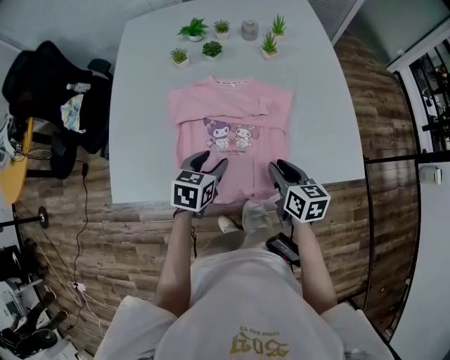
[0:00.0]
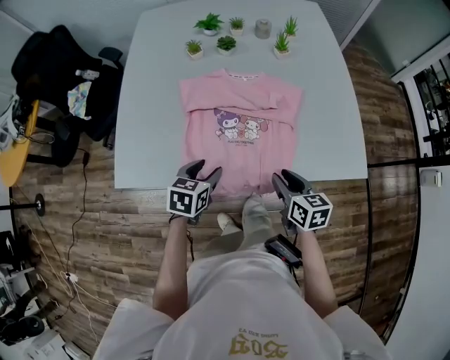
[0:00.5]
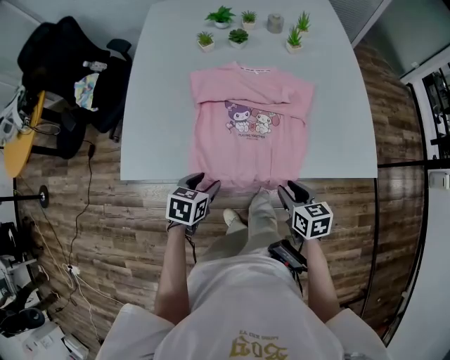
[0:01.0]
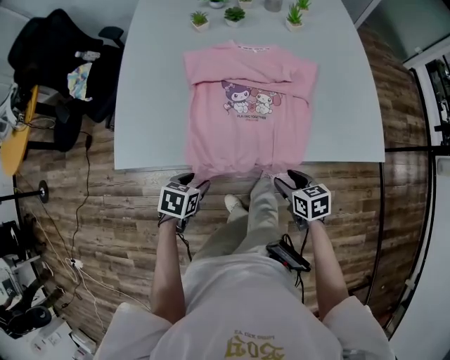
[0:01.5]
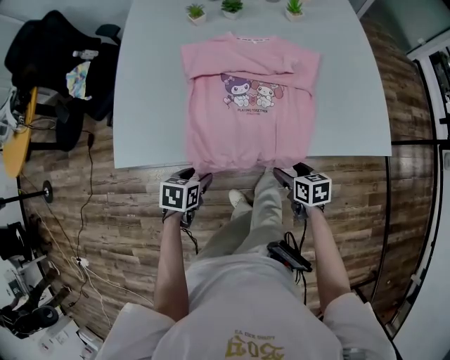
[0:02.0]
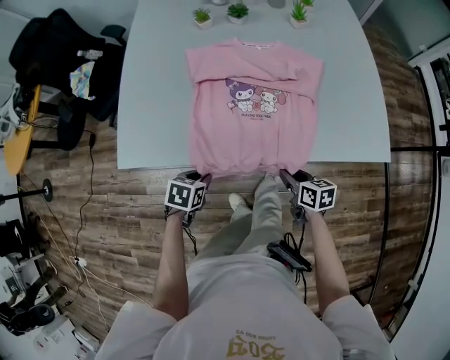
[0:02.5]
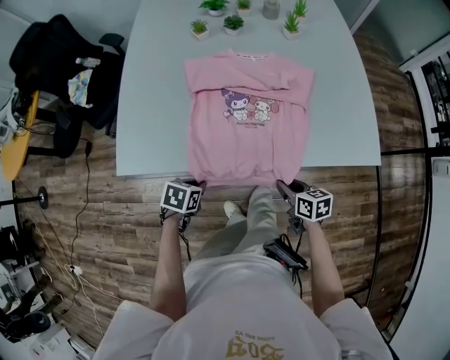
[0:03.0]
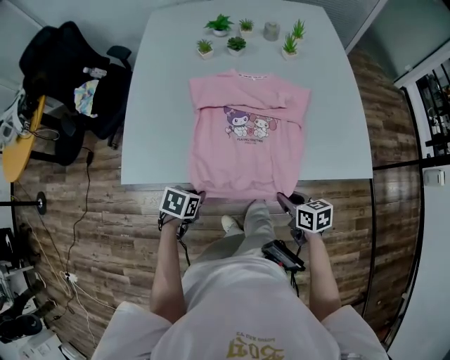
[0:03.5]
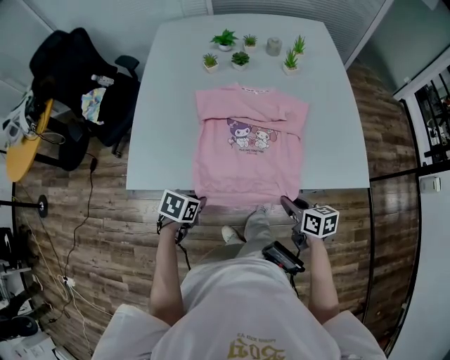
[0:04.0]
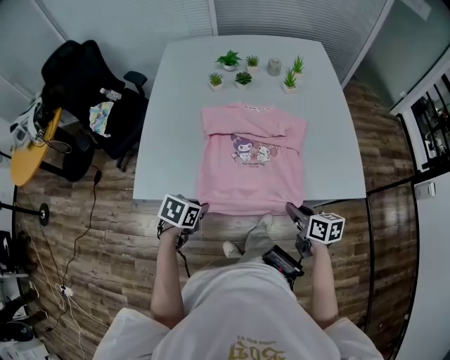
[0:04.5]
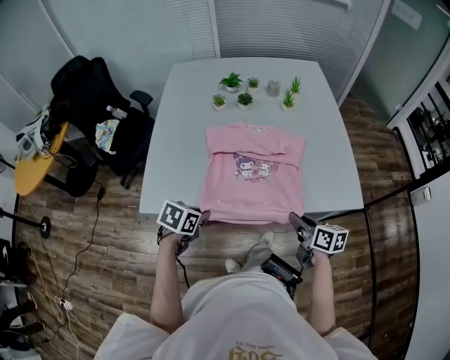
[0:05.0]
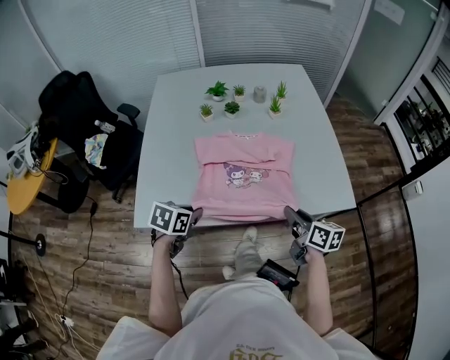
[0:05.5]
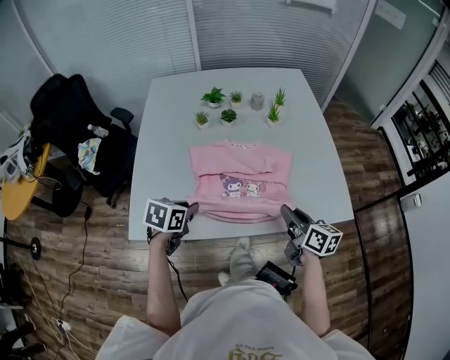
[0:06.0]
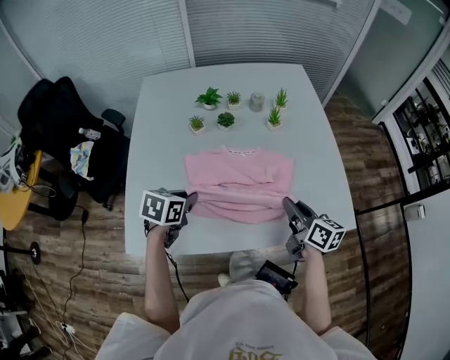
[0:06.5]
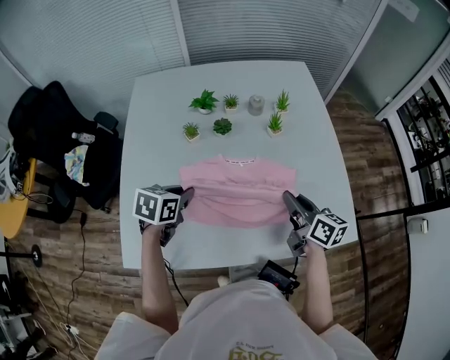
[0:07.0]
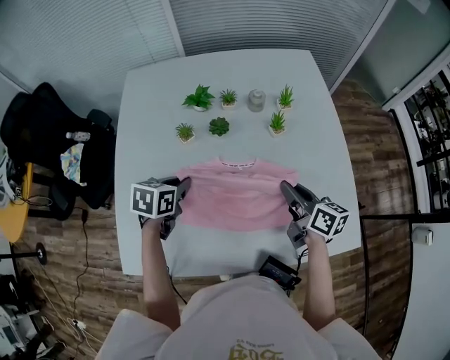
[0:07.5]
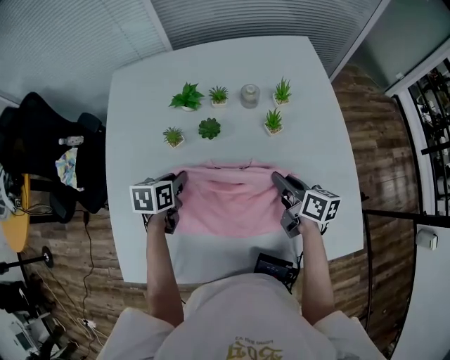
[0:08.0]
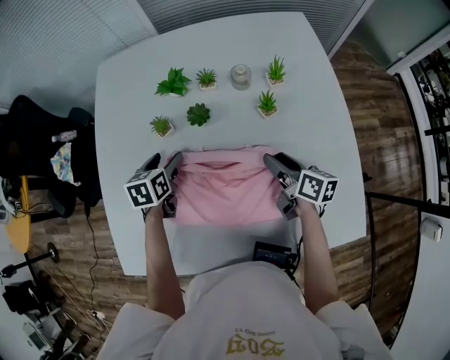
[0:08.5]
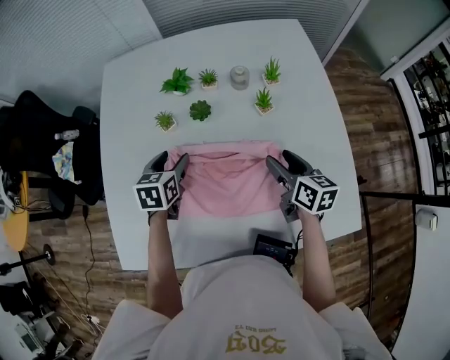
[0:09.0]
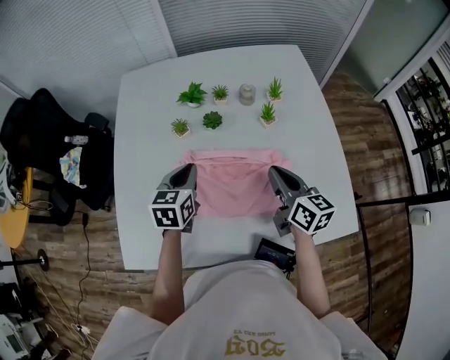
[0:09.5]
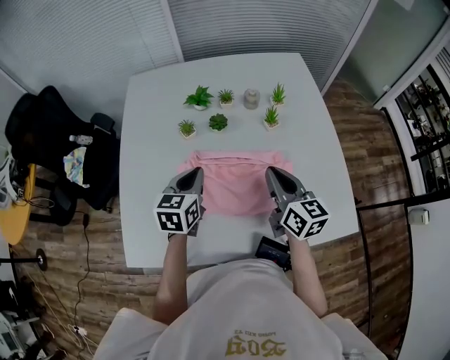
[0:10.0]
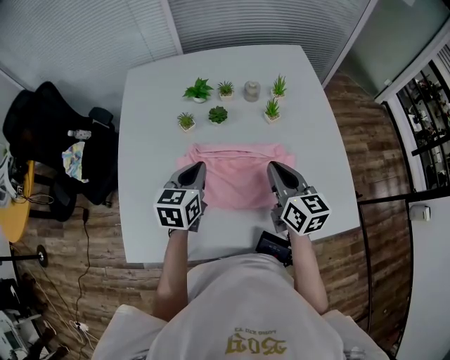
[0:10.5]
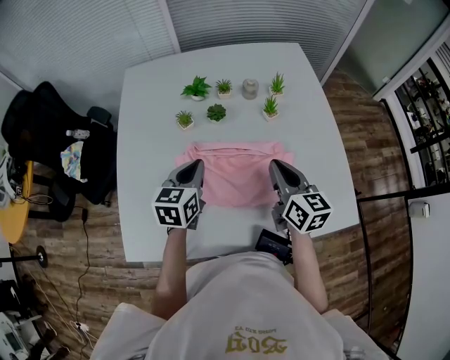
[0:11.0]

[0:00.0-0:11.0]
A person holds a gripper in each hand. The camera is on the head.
0:00.0 to 0:02.0: The left gripper shifts roughly 25 cm backward, downward and to the left, and rotates about 20 degrees, while the right gripper shifts approximately 20 cm downward and backward, changes its angle by about 20 degrees, and opens.
0:02.0 to 0:03.5: The left gripper closes up. The right gripper shifts approximately 10 cm upward, and closes up.
0:03.5 to 0:05.5: The right gripper moves upward, some 15 cm, and rotates roughly 30 degrees, while the left gripper moves upward and forward, some 15 cm.
0:05.5 to 0:07.5: The grippers both shift forward by some 30 cm.
0:07.5 to 0:09.0: The right gripper opens its fingers. The left gripper travels forward by about 5 cm, and opens.
0:09.0 to 0:11.0: The right gripper goes about 15 cm upward, backward and to the left, and closes its fingers; the left gripper moves upward and backward, approximately 10 cm, and closes.

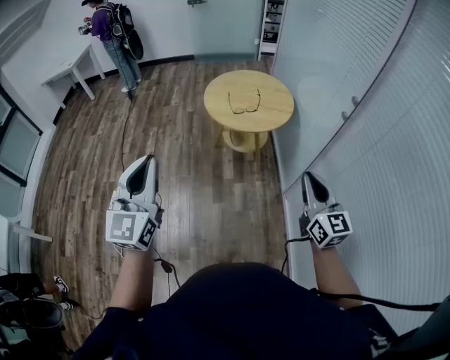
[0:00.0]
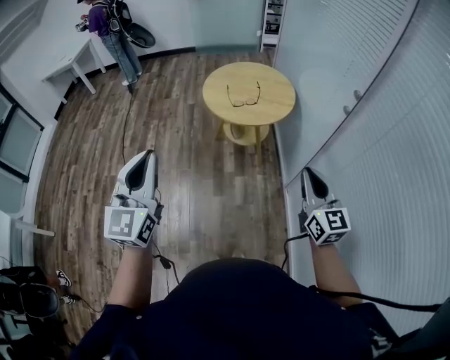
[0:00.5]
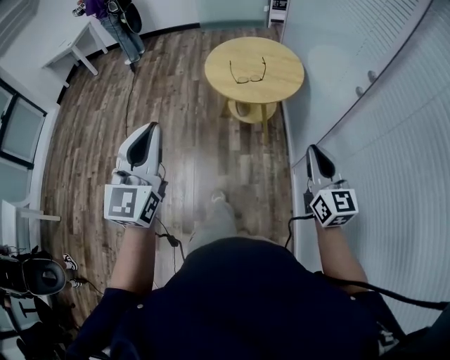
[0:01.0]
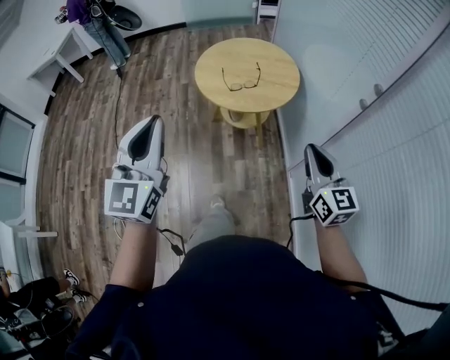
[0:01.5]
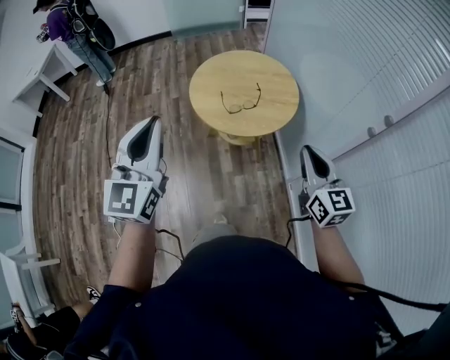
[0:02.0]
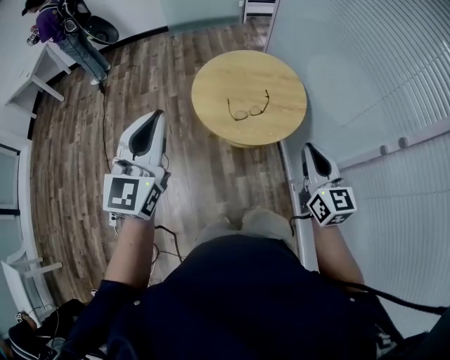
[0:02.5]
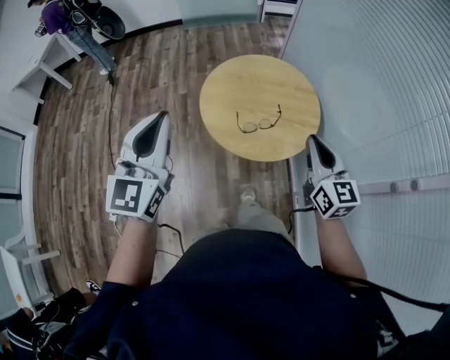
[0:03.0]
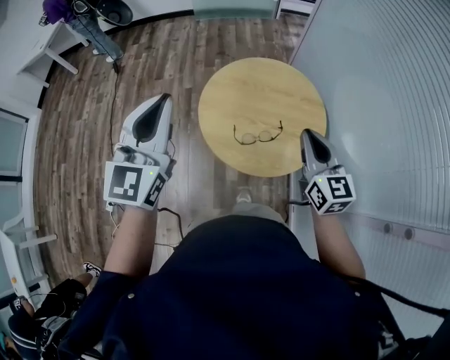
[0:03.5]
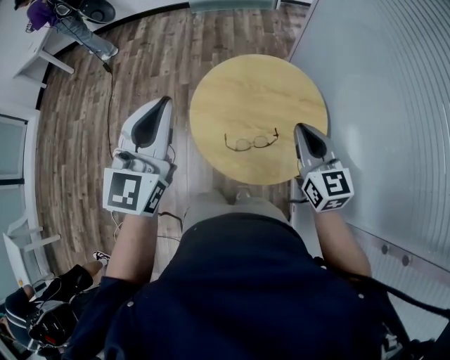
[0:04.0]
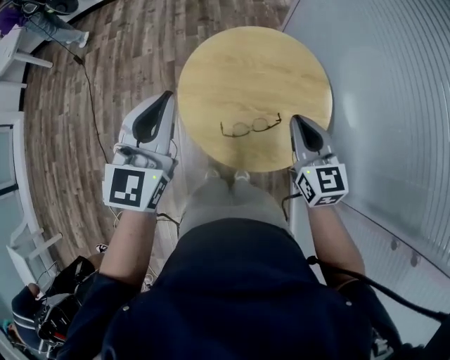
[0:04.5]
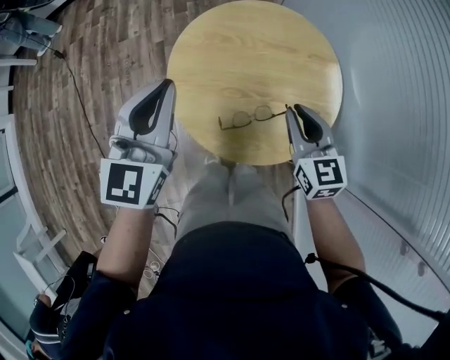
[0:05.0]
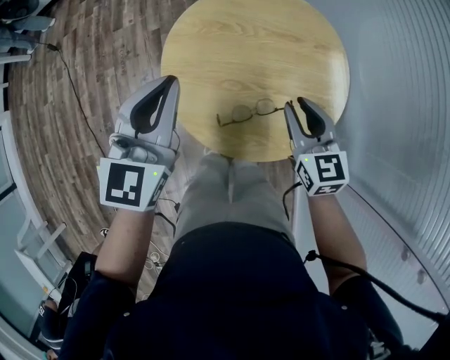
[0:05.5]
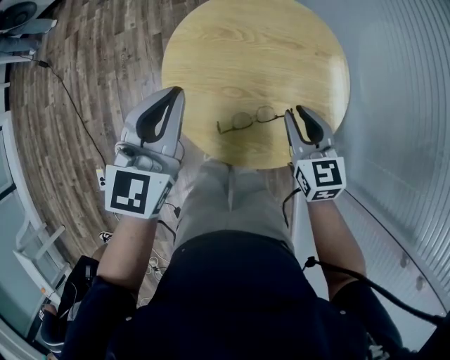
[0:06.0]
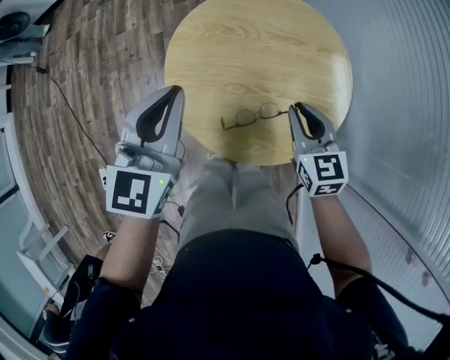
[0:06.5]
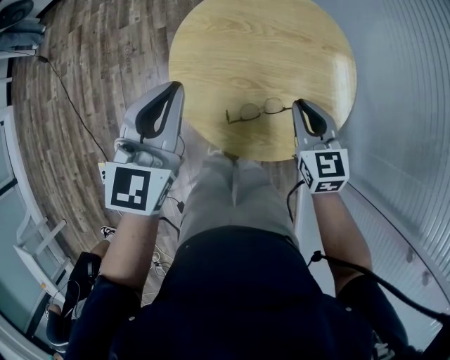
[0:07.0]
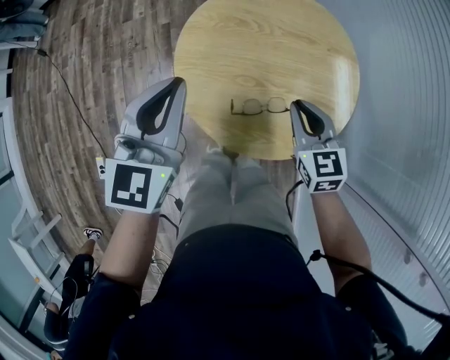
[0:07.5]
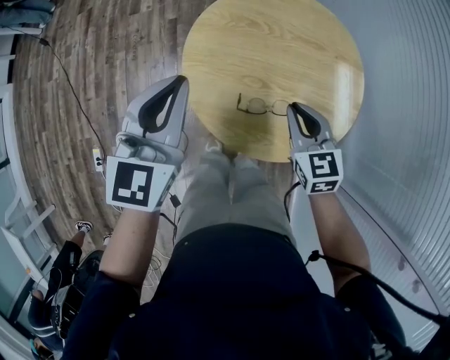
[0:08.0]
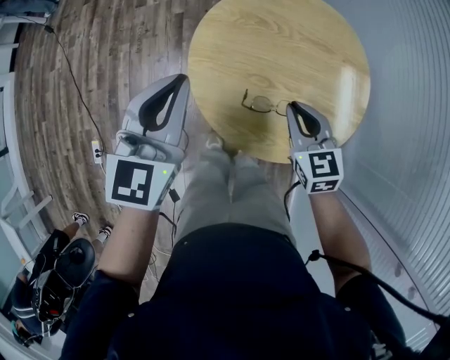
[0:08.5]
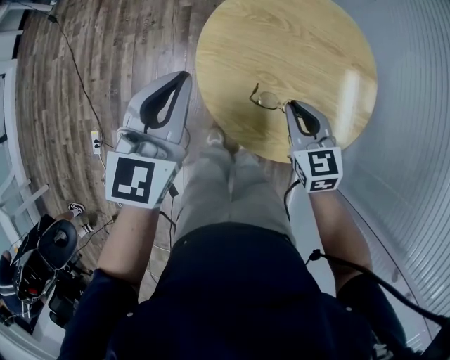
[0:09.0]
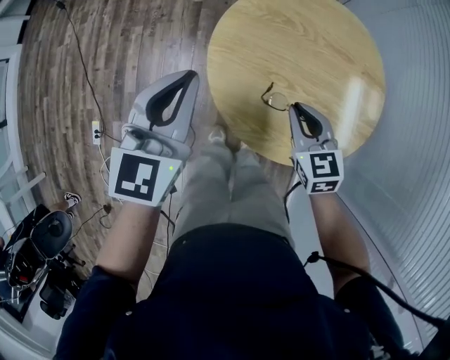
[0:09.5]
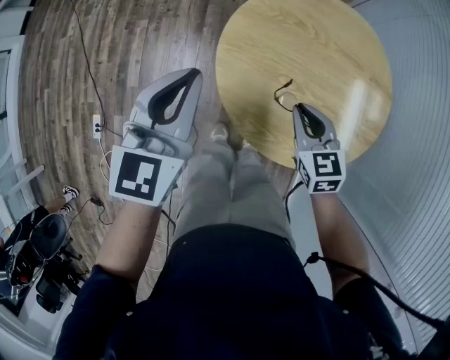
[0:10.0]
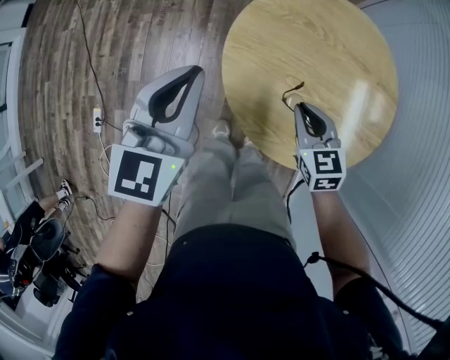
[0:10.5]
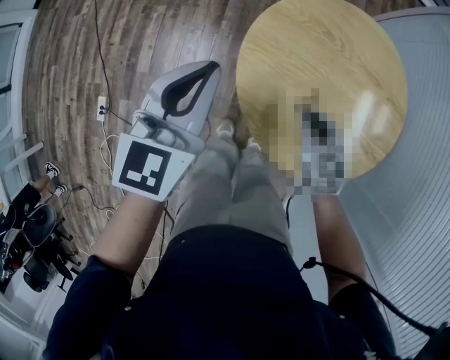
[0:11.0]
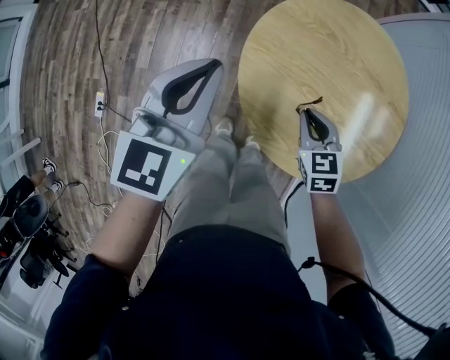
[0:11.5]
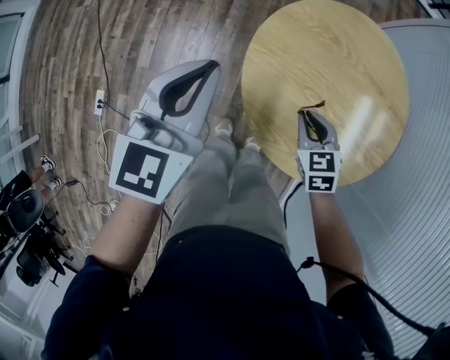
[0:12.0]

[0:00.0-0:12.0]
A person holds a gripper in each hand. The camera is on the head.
0:00.0 to 0:02.0: Both grippers move forward, some 30 cm.
0:02.0 to 0:04.0: The two grippers go approximately 35 cm forward.
0:04.0 to 0:06.0: The right gripper goes some 20 cm downward, and opens; the left gripper moves downward and forward, some 25 cm, and turns by some 20 degrees.
0:06.0 to 0:08.0: The left gripper changes place by roughly 5 cm, while the right gripper changes place by approximately 5 cm.
0:08.0 to 0:10.0: The two grippers go some 5 cm to the left.
0:10.0 to 0:12.0: The right gripper heads downward, covering about 5 cm.

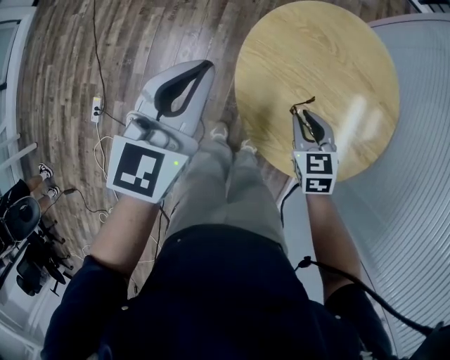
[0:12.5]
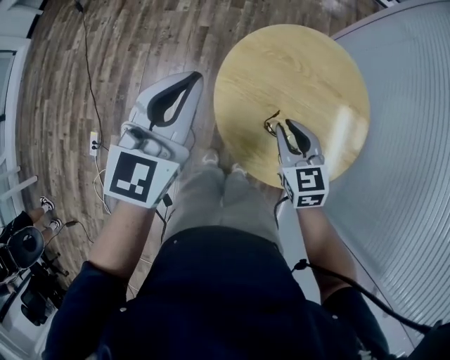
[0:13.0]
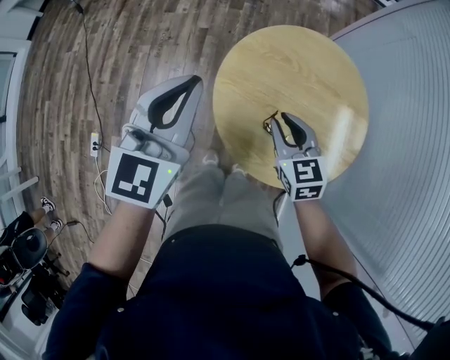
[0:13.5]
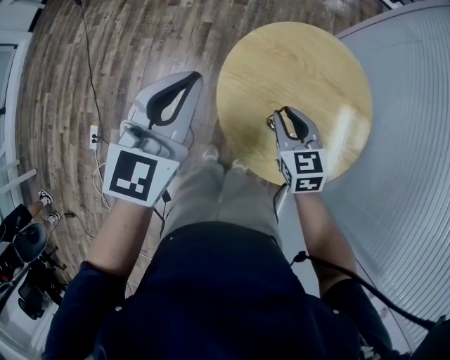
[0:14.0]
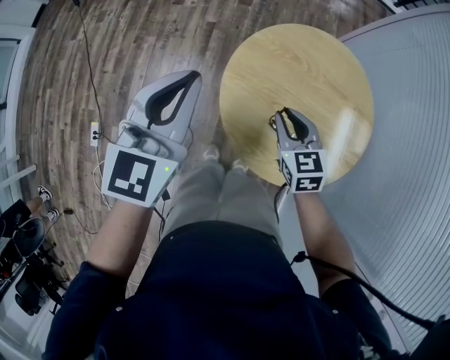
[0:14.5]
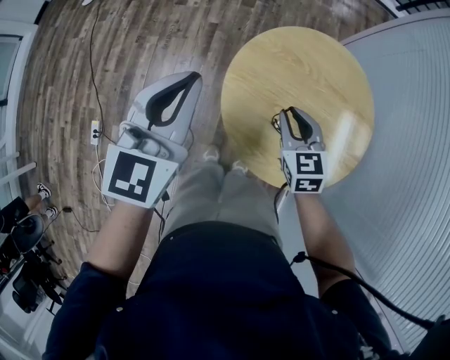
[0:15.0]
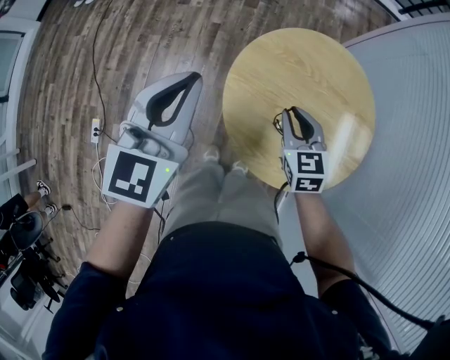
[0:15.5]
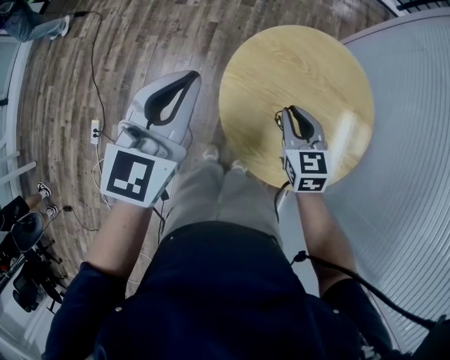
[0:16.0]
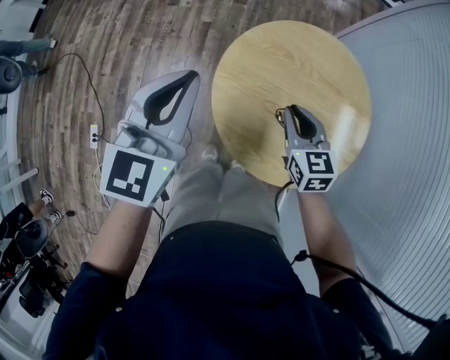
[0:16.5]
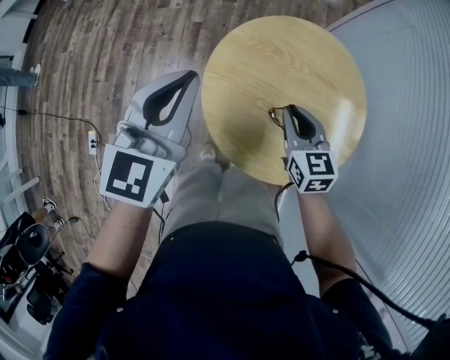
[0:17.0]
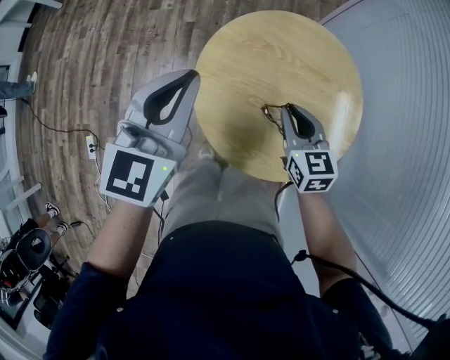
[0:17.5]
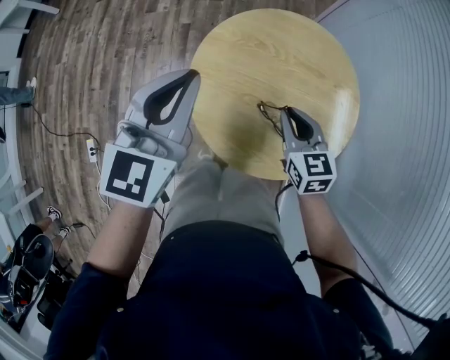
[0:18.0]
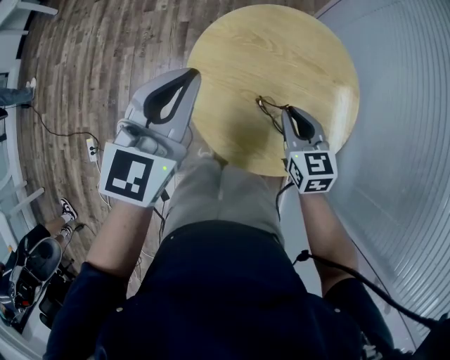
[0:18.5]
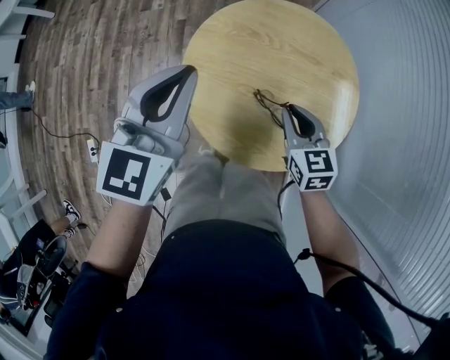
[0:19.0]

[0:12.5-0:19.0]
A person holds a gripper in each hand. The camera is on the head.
0:12.5 to 0:14.5: Both grippers travel together upward, some 5 cm.
0:14.5 to 0:17.0: Both grippers move to the right, about 5 cm.
0:17.0 to 0:19.0: The right gripper moves backward and to the right, roughly 10 cm. Meanwhile the left gripper shifts some 5 cm to the right.
